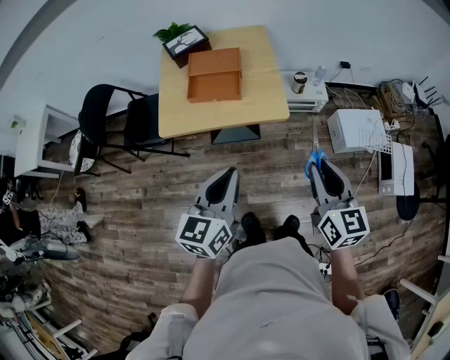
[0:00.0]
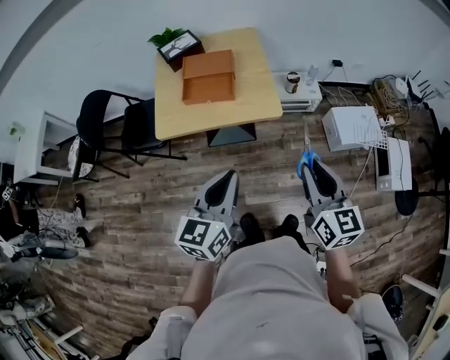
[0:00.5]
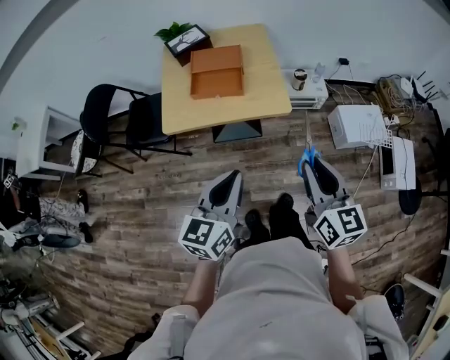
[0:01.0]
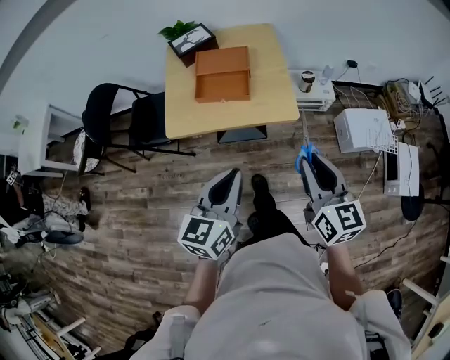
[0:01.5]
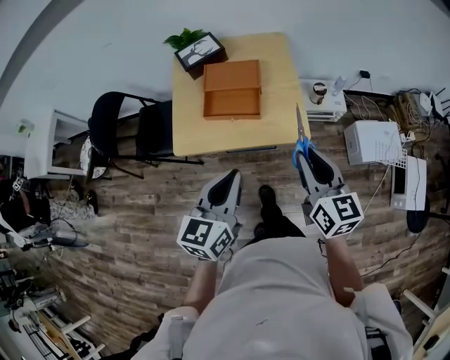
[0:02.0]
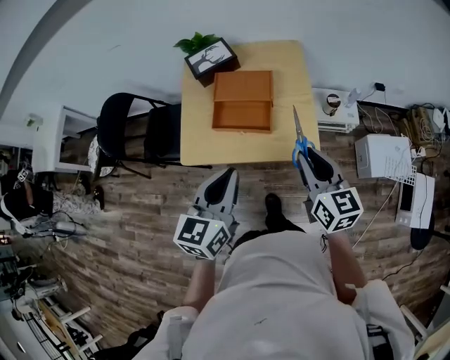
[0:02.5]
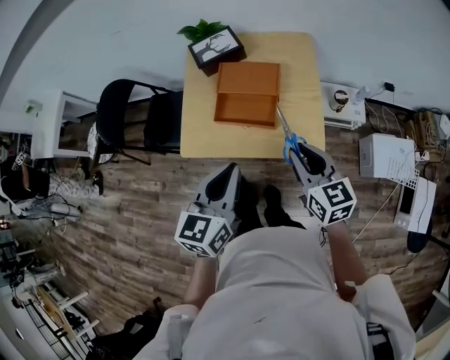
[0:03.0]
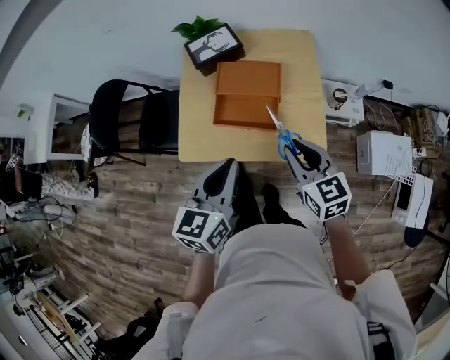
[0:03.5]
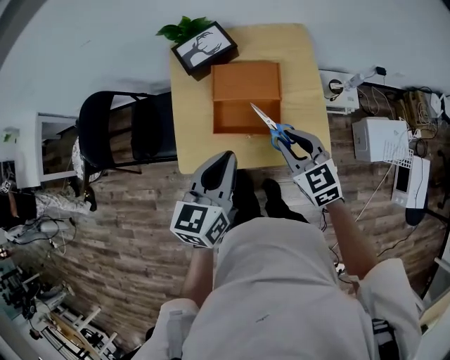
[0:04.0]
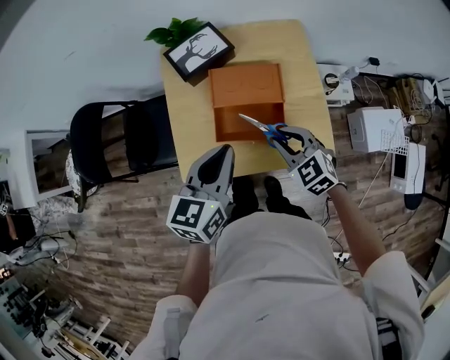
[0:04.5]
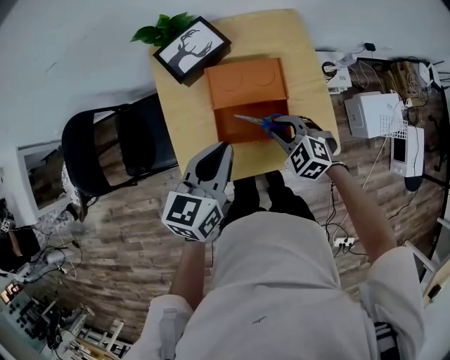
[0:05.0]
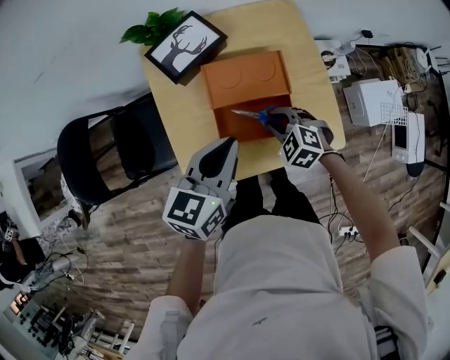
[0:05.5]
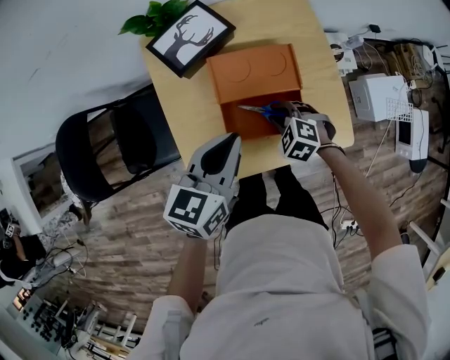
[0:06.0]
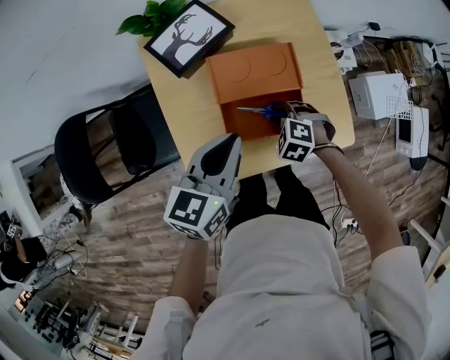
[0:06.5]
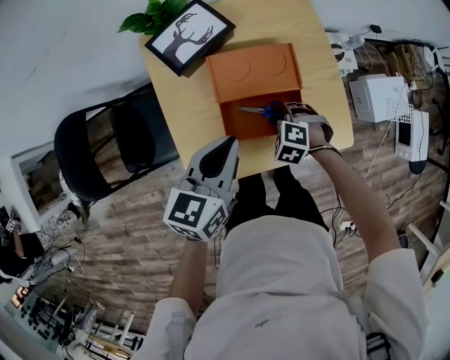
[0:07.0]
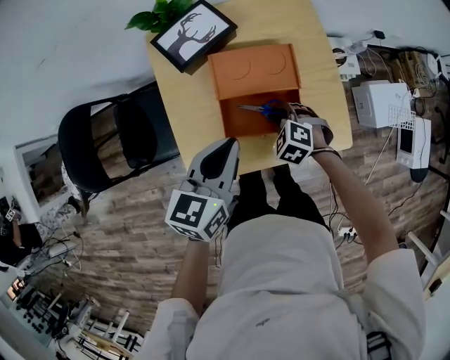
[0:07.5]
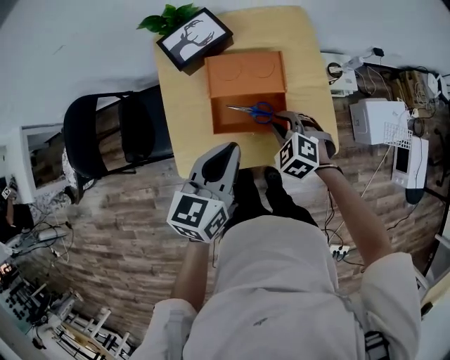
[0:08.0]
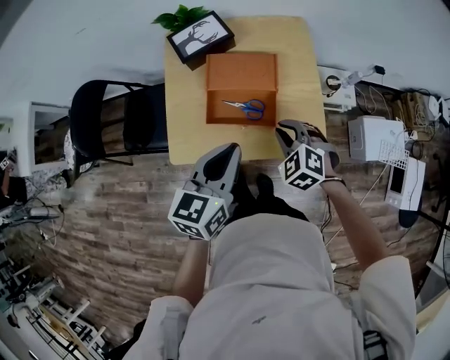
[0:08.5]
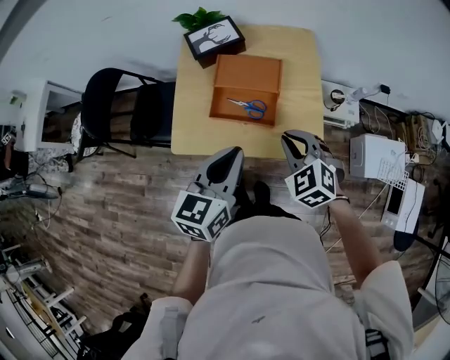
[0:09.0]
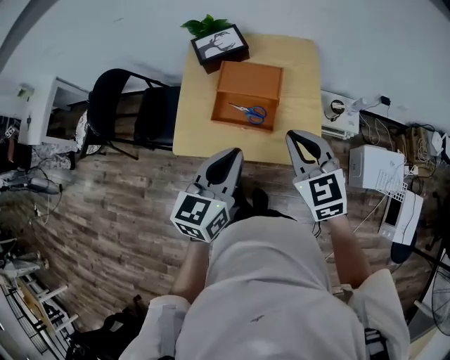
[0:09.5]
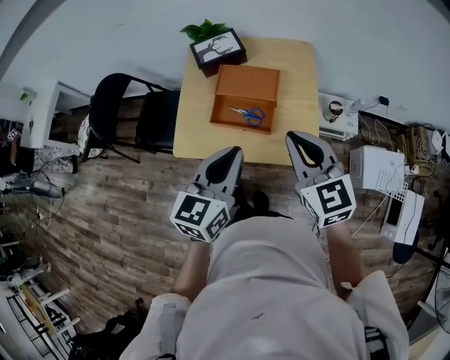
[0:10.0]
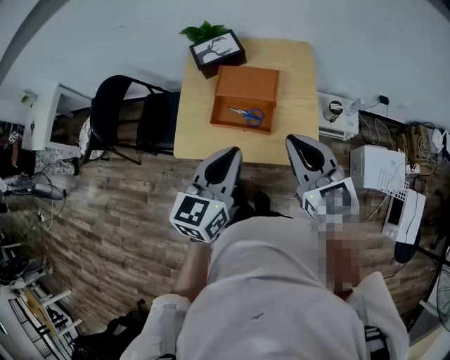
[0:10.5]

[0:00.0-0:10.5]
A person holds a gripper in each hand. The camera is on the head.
0:00.0 to 0:02.0: The right gripper is displaced forward and to the left by roughly 15 cm. The left gripper moves forward, approximately 10 cm.
0:02.0 to 0:04.0: The left gripper goes about 20 cm forward. Meanwhile the right gripper shifts approximately 25 cm forward, downward and to the left, and swivels about 30 degrees.
0:04.0 to 0:06.5: The right gripper heads downward, covering about 20 cm, and tilts its fingers about 40 degrees downward. Meanwhile the left gripper heads forward, downward and to the left, covering roughly 15 cm.
0:06.5 to 0:08.5: The left gripper moves backward, to the right and upward, some 15 cm. Meanwhile the right gripper is displaced upward, to the right and backward by about 20 cm, and swivels approximately 20 degrees.
0:08.5 to 0:10.5: The left gripper shifts about 10 cm backward and upward; the right gripper travels upward by some 20 cm, and angles its fingers upward, by some 40 degrees.

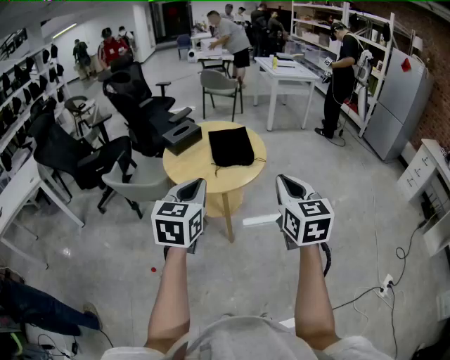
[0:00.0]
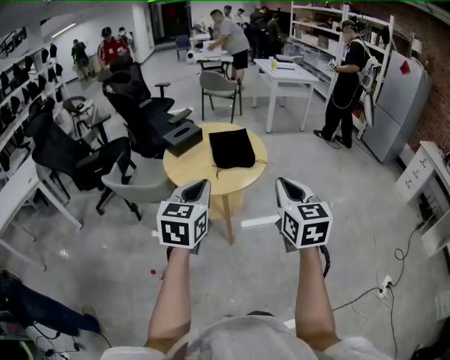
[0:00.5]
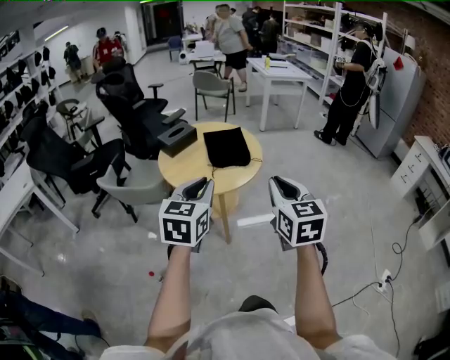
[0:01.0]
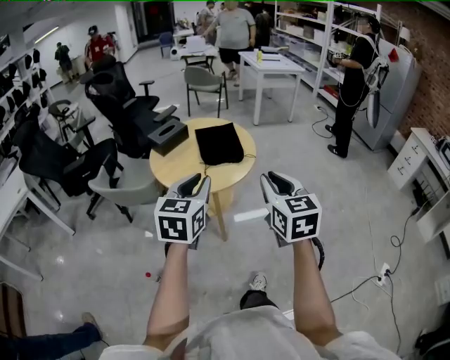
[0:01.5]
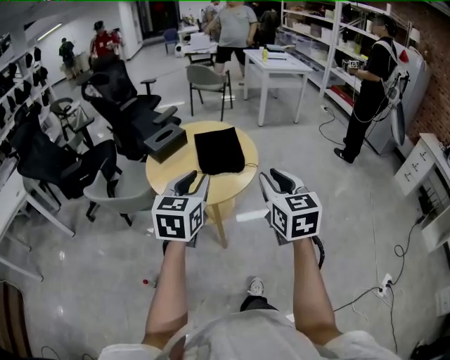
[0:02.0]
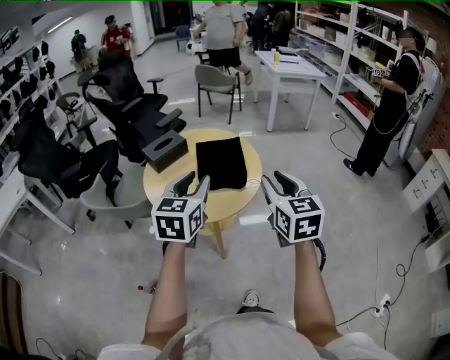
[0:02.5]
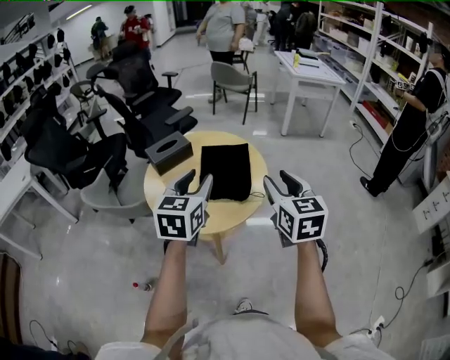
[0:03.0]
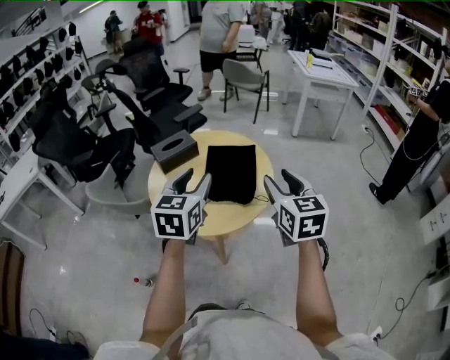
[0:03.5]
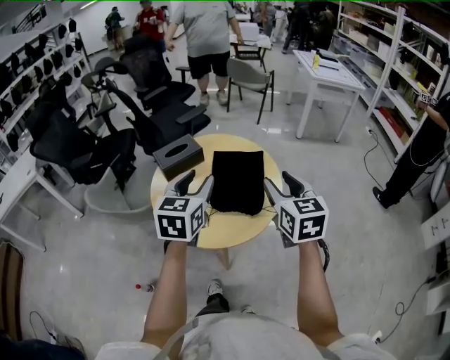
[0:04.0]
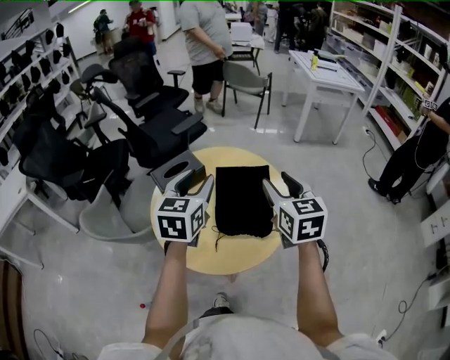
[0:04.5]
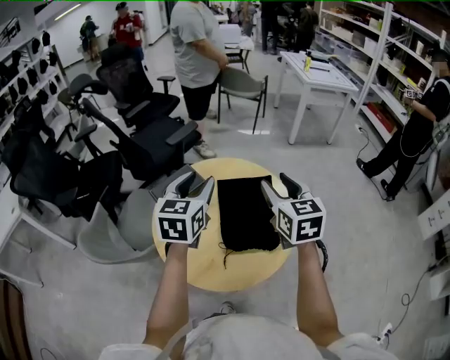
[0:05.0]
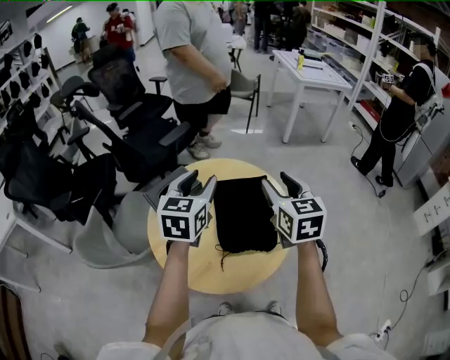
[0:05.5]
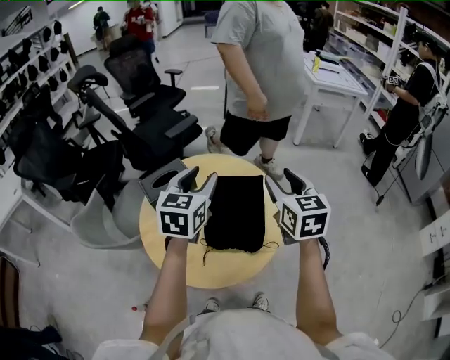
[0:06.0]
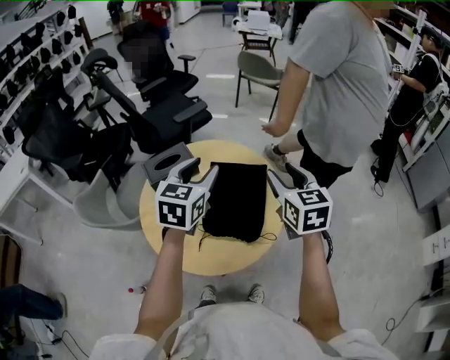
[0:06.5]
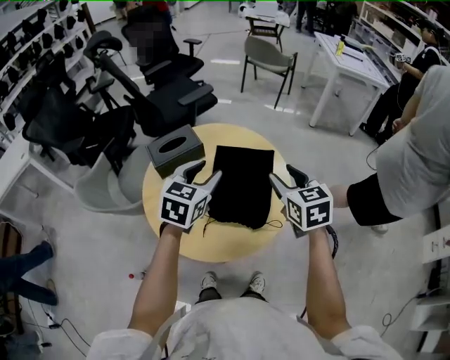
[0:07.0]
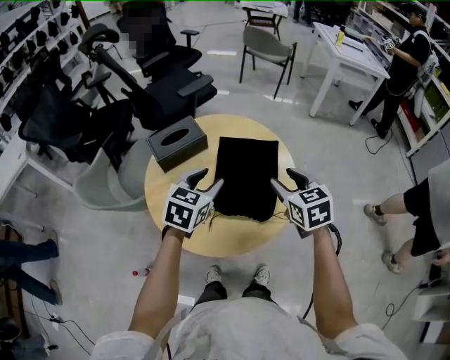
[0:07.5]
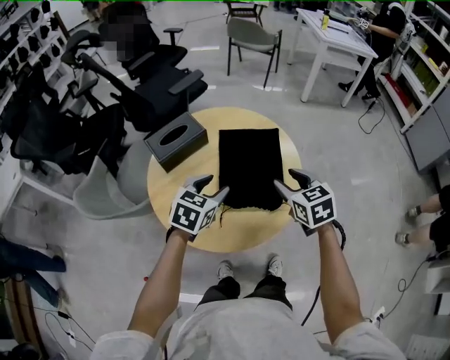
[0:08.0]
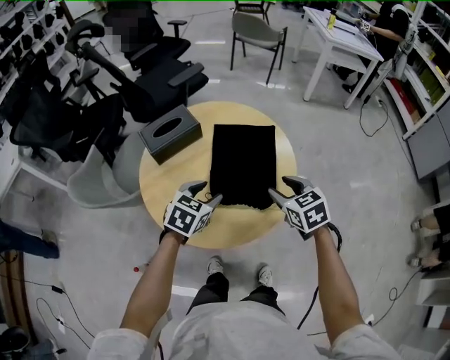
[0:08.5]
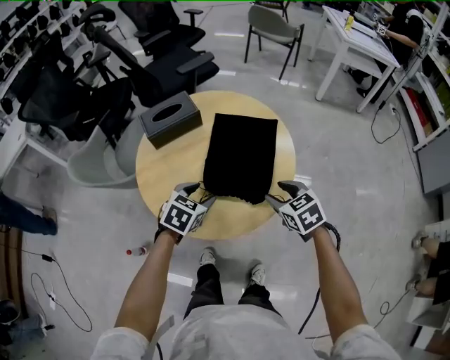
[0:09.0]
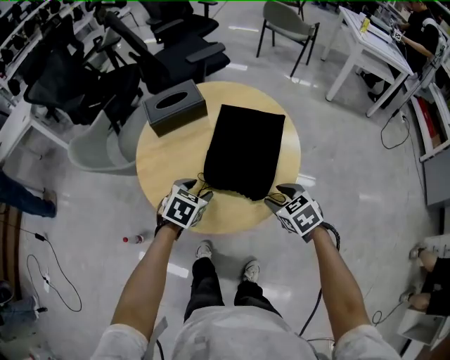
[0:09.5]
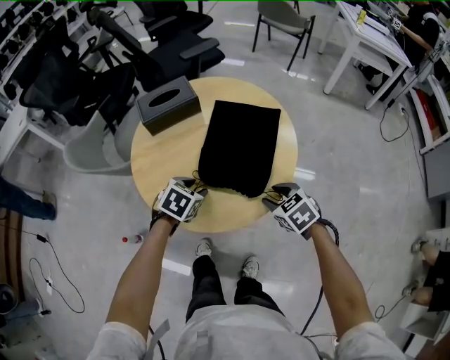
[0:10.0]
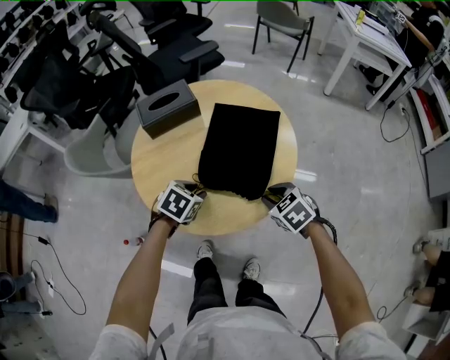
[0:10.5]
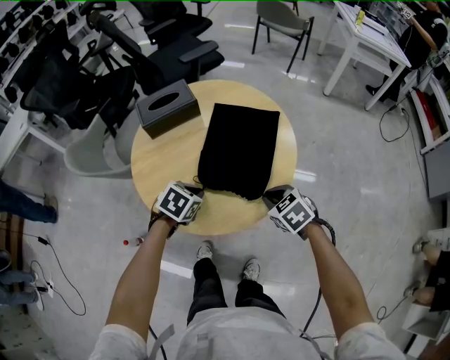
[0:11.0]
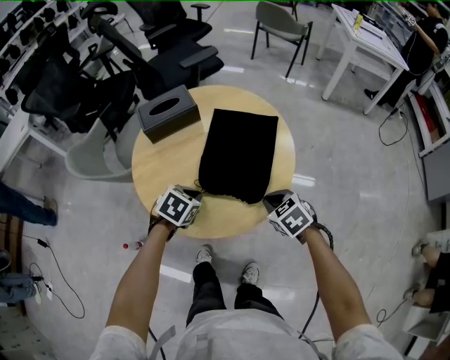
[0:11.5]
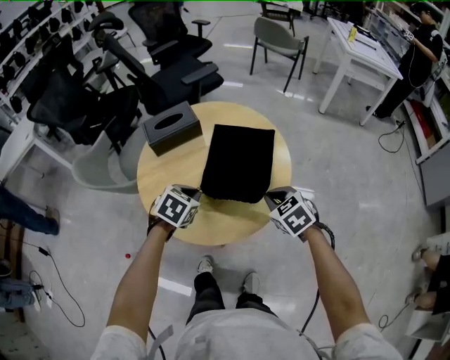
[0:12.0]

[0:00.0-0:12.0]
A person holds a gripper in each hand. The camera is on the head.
0:00.0 to 0:02.0: Both grippers move forward, roughly 10 cm. The right gripper opens its fingers. Meanwhile the left gripper opens up.
0:02.0 to 0:04.0: The grippers both shift forward by about 25 cm. The right gripper opens up.
0:04.0 to 0:06.0: The grippers both shift forward by some 15 cm.
0:06.0 to 0:08.0: Both grippers travel together downward and backward, about 20 cm. The left gripper changes its angle by about 30 degrees, while the right gripper rotates roughly 20 degrees.
0:08.0 to 0:10.0: The two grippers go approximately 15 cm downward and backward. The left gripper rotates about 20 degrees; the right gripper swivels some 30 degrees.
0:10.0 to 0:12.0: The grippers both shift upward by roughly 5 cm. The right gripper closes, while the left gripper closes up.

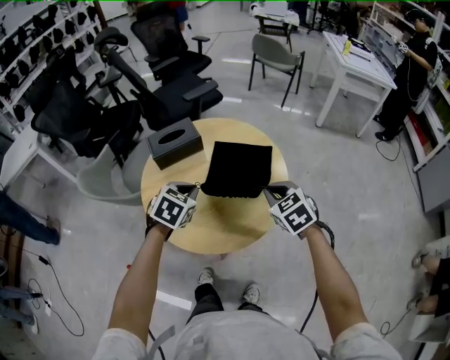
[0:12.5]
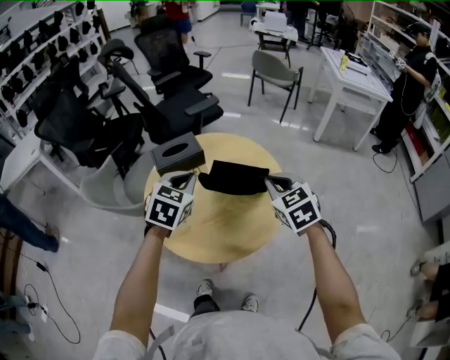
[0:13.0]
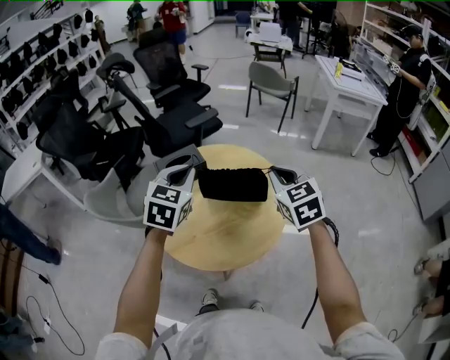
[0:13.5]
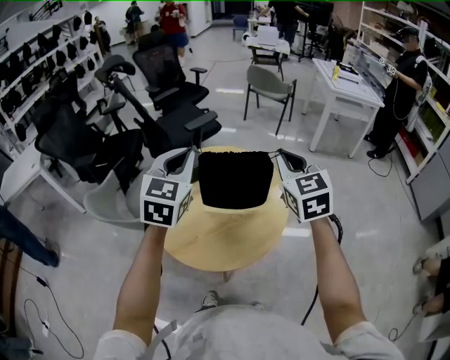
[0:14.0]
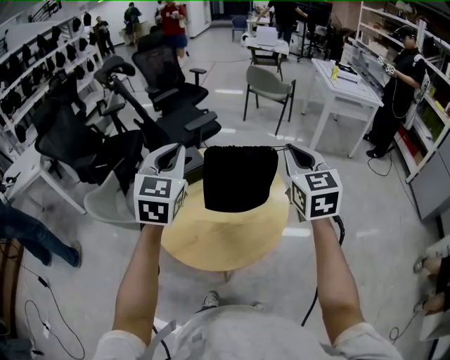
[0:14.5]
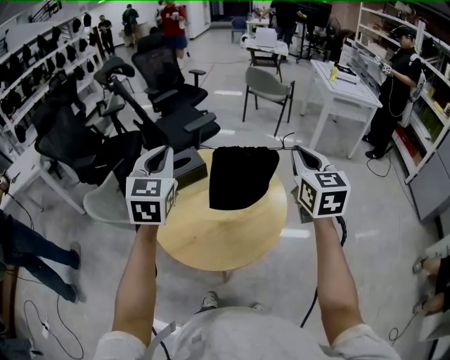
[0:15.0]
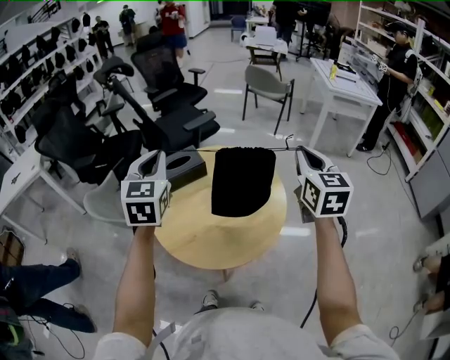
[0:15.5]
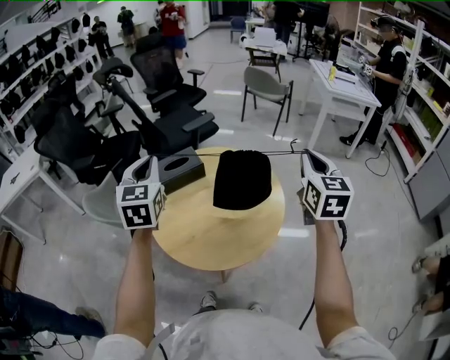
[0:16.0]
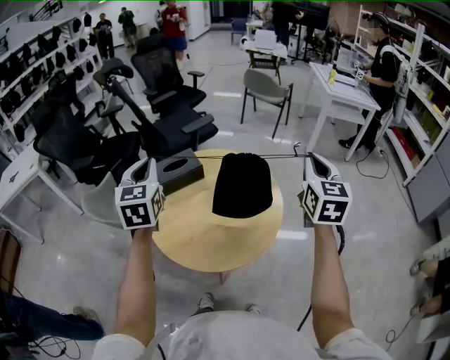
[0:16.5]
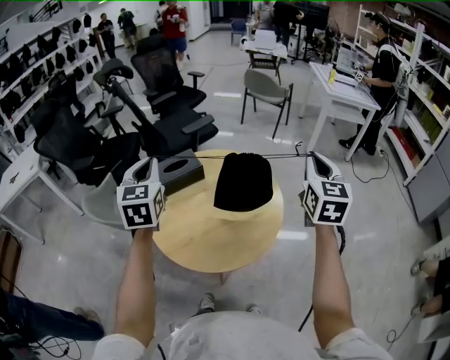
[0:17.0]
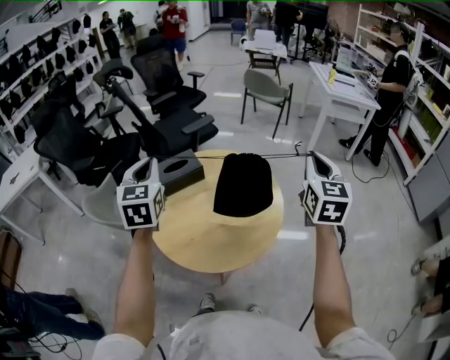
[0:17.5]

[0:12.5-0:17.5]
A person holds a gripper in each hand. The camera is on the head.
0:12.5 to 0:15.0: The grippers both shift upward by approximately 25 cm. The right gripper points its fingers approximately 30 degrees further upward, while the left gripper angles its fingers upward, by about 40 degrees.
0:15.0 to 0:17.5: The right gripper heads to the right, covering some 5 cm.
